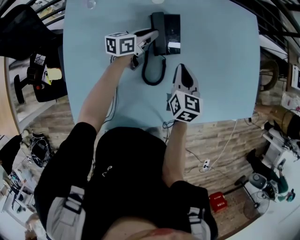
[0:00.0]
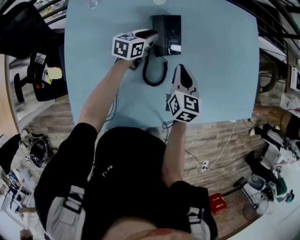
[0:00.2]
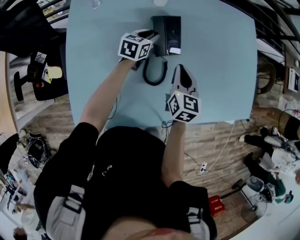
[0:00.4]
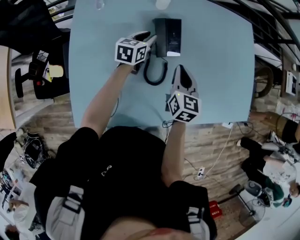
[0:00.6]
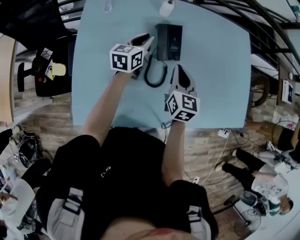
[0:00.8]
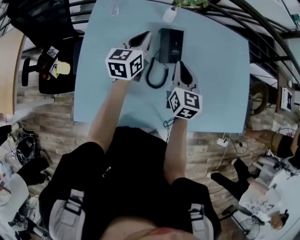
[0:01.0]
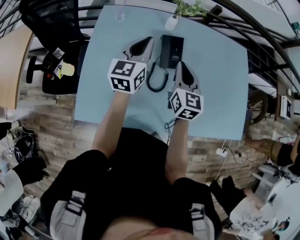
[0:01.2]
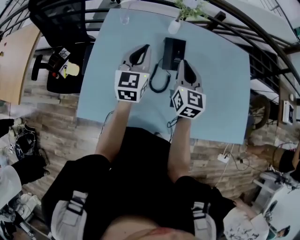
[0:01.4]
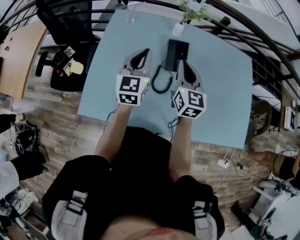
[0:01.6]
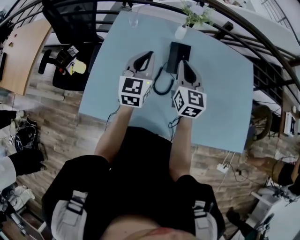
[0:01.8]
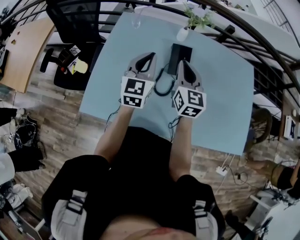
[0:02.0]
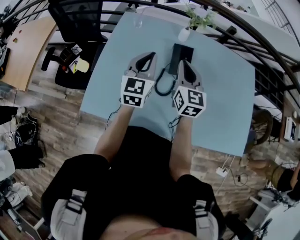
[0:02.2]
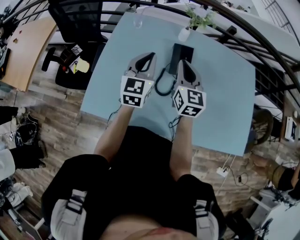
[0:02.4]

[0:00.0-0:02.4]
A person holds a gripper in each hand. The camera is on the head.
0.0 to 1.2 s: The right gripper heads upward, covering roughly 15 cm, and changes its angle by roughly 20 degrees. Meanwhile the left gripper moves upward and backward, roughly 30 cm, and rotates roughly 50 degrees.
1.2 to 2.4 s: The left gripper shifts about 5 cm backward.

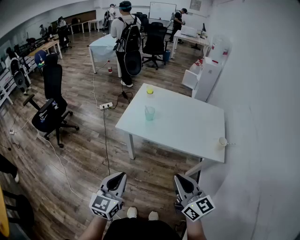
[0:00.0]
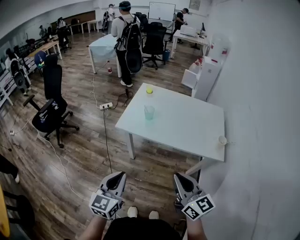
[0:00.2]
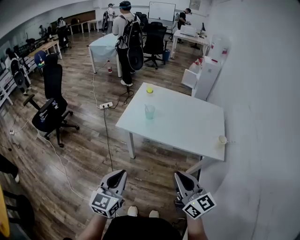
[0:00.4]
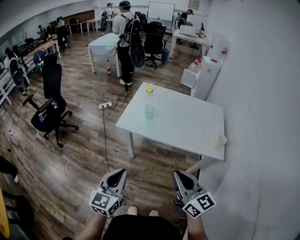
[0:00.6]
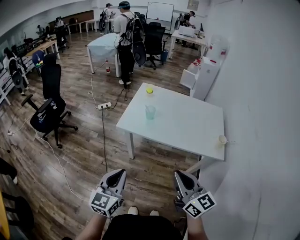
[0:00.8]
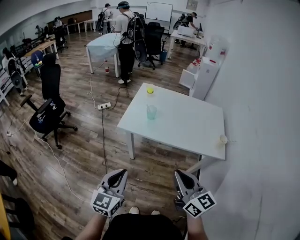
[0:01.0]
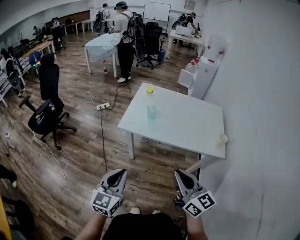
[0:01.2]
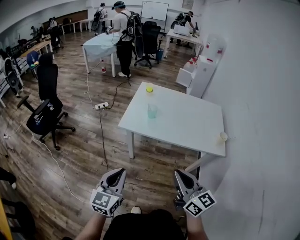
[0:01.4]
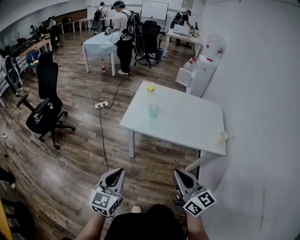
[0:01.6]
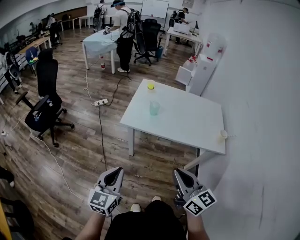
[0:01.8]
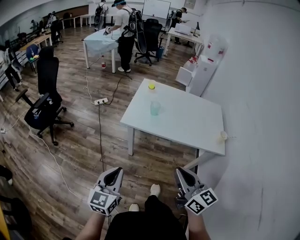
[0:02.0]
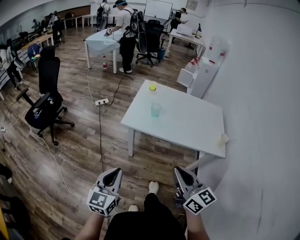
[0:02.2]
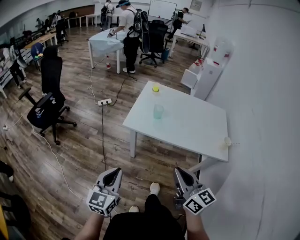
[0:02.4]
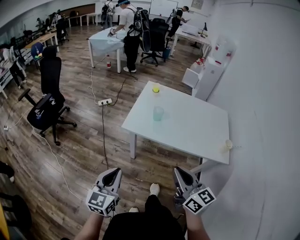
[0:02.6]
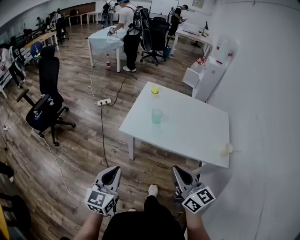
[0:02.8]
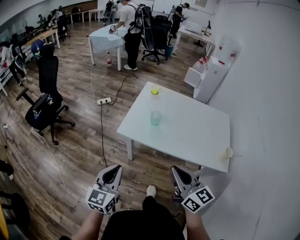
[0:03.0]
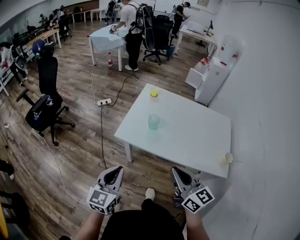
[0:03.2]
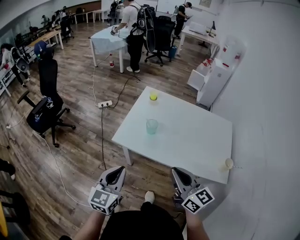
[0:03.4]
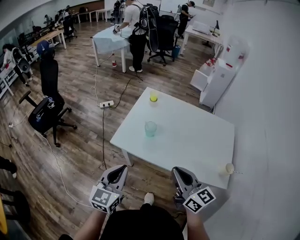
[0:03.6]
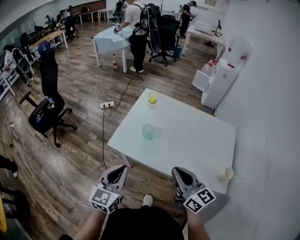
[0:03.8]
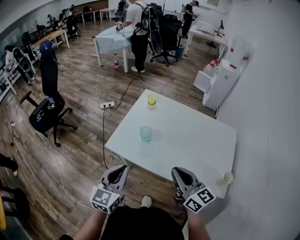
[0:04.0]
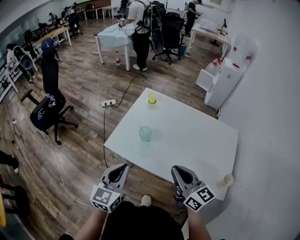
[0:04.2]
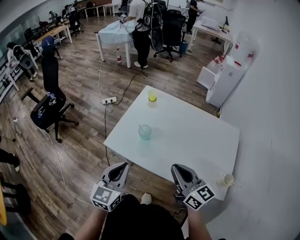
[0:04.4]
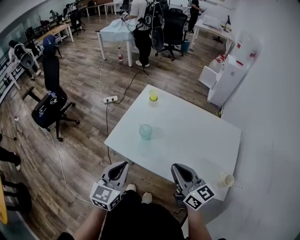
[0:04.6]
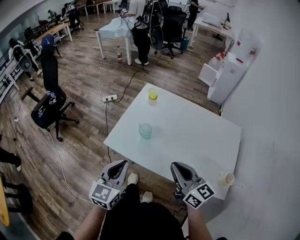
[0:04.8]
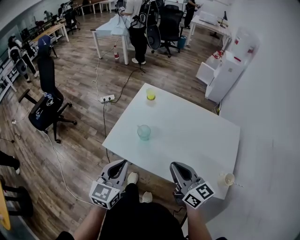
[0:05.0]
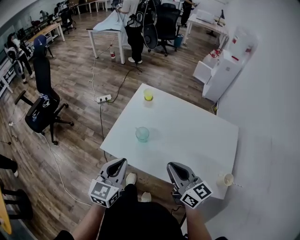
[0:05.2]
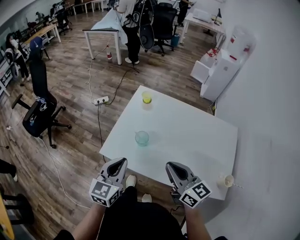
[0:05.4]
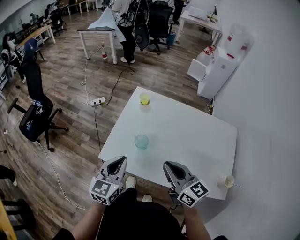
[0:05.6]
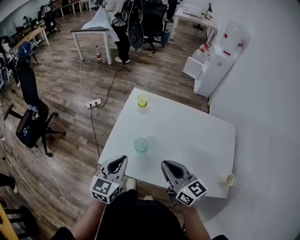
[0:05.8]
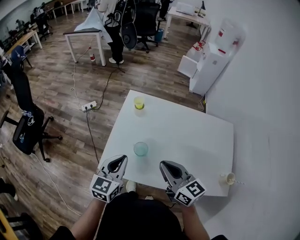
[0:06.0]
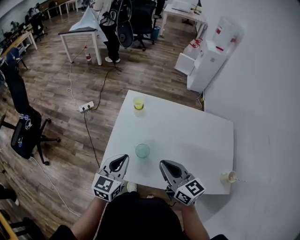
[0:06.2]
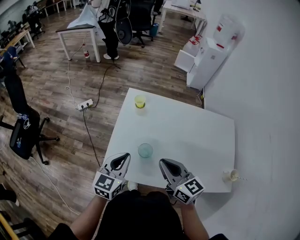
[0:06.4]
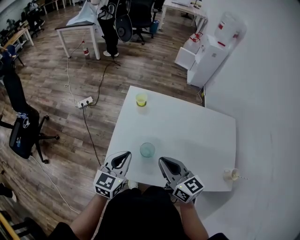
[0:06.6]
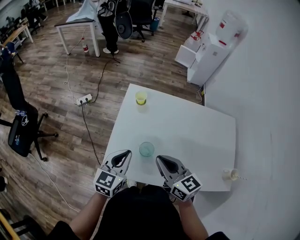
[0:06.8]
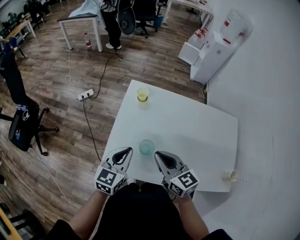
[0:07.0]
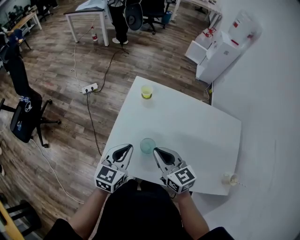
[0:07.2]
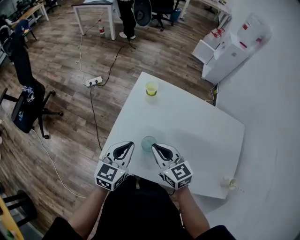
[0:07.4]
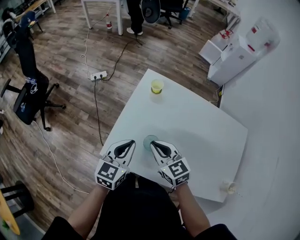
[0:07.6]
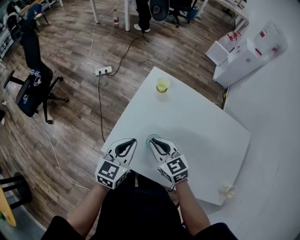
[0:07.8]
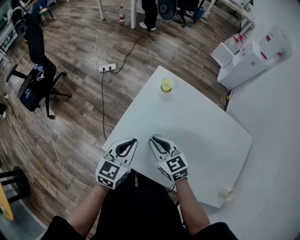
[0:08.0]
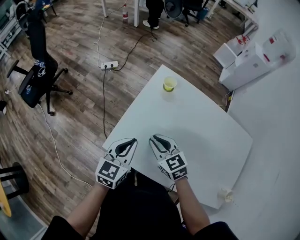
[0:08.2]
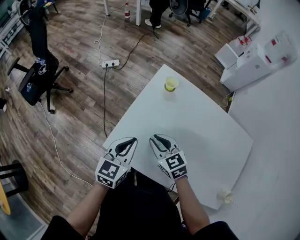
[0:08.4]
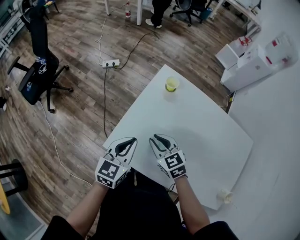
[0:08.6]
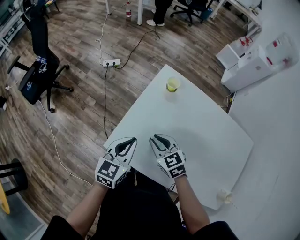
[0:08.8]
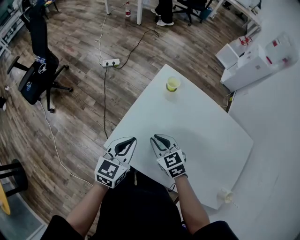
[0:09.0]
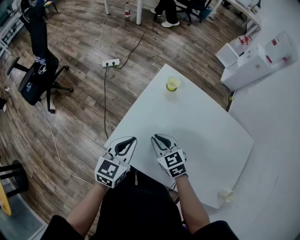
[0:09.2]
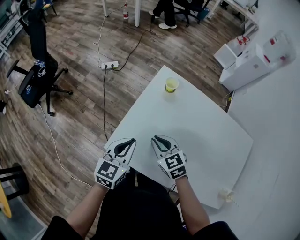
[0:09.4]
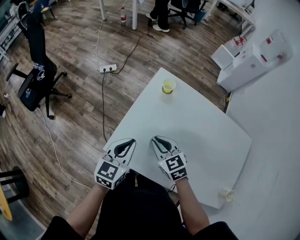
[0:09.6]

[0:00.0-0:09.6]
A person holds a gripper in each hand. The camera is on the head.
0.0 to 1.6 s: Both grippers travel together to the left, about 10 cm.
1.6 to 3.2 s: Both grippers travel together forward, some 15 cm.
3.2 to 4.8 s: The right gripper goes about 15 cm forward and to the right. The left gripper goes approximately 15 cm to the right and forward.
4.8 to 6.4 s: The right gripper is displaced forward and to the left by about 15 cm. Meanwhile the left gripper shifts roughly 20 cm forward.
6.4 to 8.0 s: The right gripper travels downward, forward and to the left by approximately 15 cm, and turns by some 30 degrees.
8.0 to 9.6 s: The grippers move only a little.

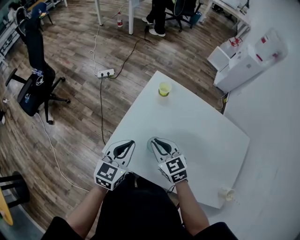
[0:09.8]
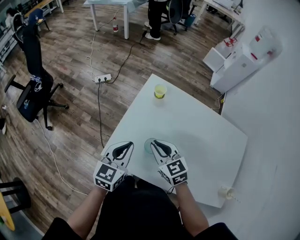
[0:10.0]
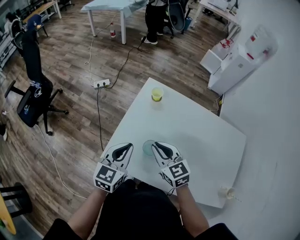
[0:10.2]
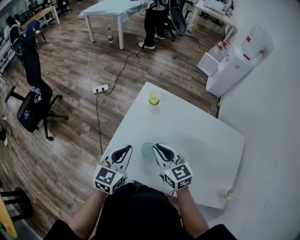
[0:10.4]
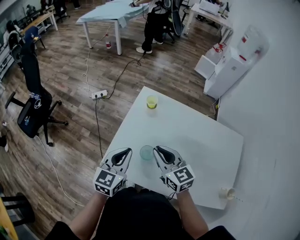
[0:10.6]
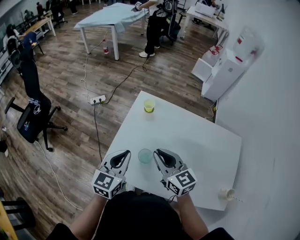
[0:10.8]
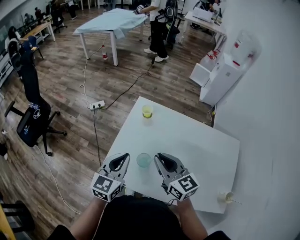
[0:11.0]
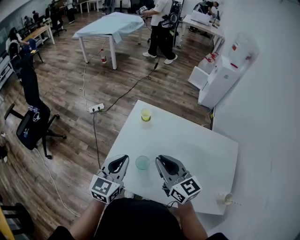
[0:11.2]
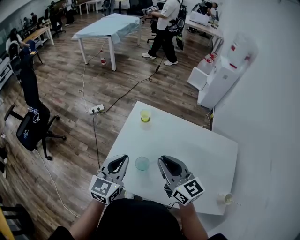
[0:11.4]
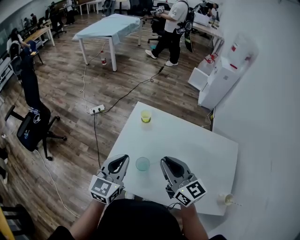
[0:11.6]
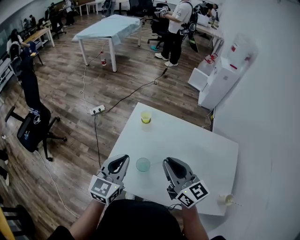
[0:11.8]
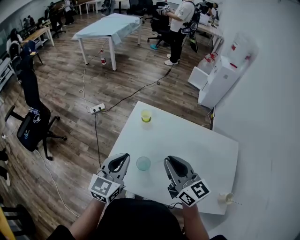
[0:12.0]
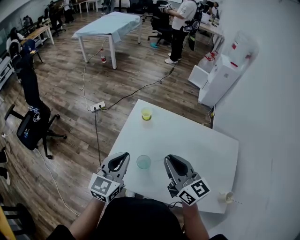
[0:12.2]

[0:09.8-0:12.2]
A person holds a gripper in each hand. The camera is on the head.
9.8 to 11.0 s: The left gripper moves upward, roughly 5 cm; the right gripper goes about 15 cm upward and to the right, and swivels approximately 30 degrees.
11.0 to 12.2 s: The right gripper heads upward, covering approximately 5 cm.

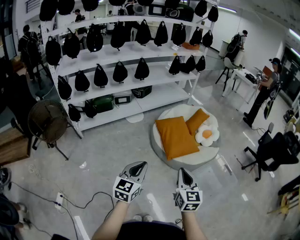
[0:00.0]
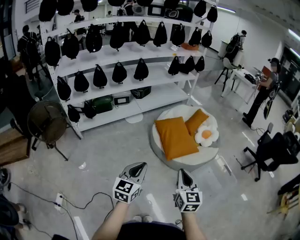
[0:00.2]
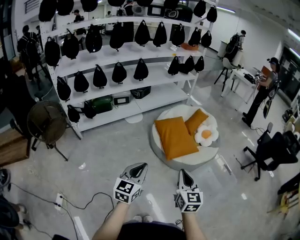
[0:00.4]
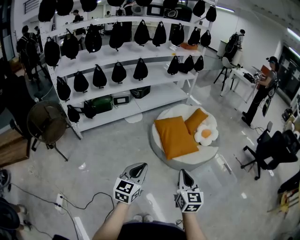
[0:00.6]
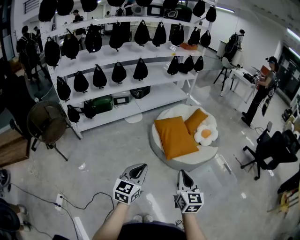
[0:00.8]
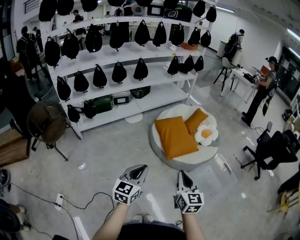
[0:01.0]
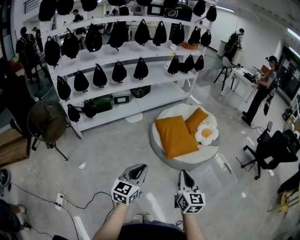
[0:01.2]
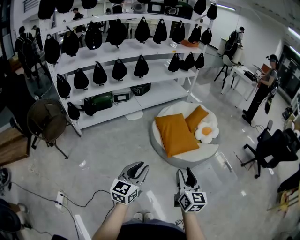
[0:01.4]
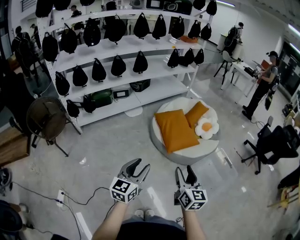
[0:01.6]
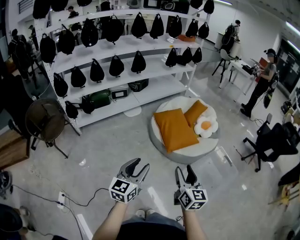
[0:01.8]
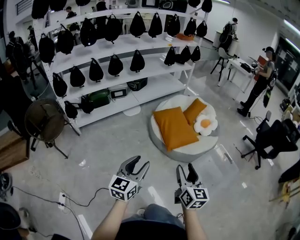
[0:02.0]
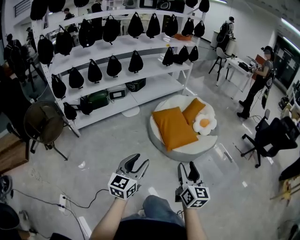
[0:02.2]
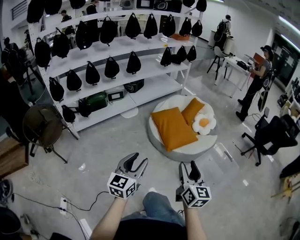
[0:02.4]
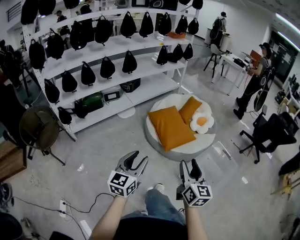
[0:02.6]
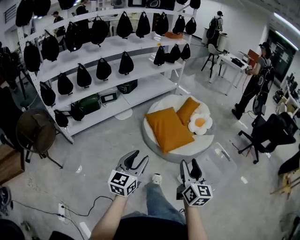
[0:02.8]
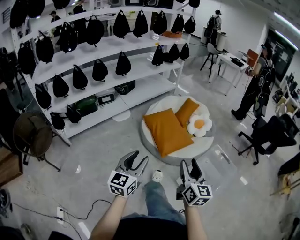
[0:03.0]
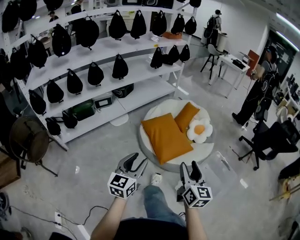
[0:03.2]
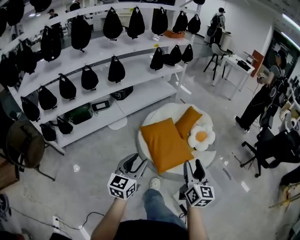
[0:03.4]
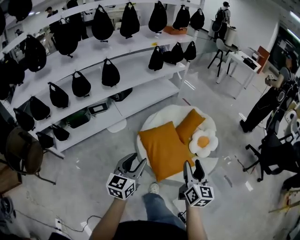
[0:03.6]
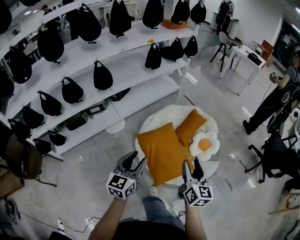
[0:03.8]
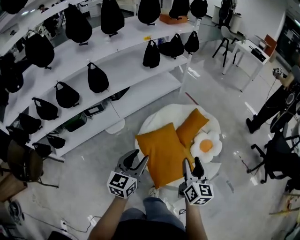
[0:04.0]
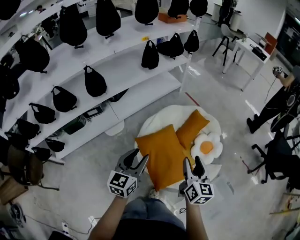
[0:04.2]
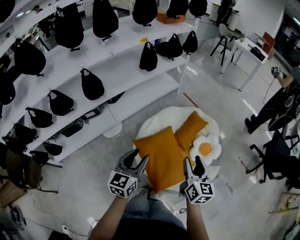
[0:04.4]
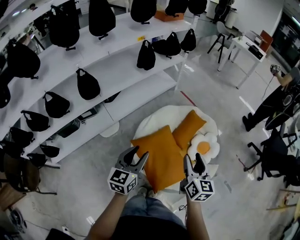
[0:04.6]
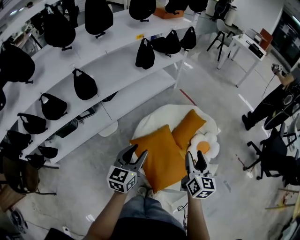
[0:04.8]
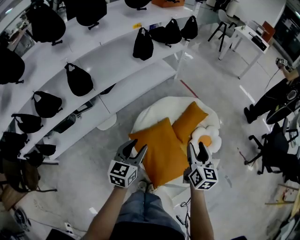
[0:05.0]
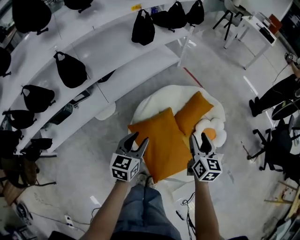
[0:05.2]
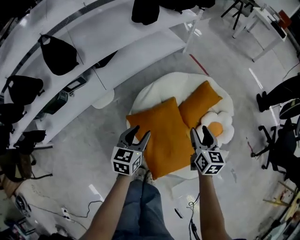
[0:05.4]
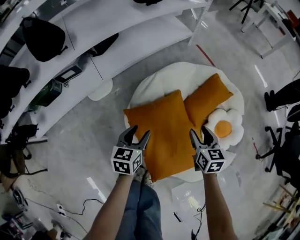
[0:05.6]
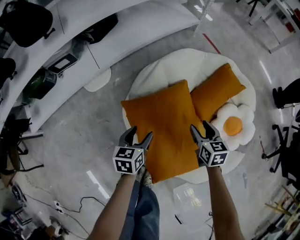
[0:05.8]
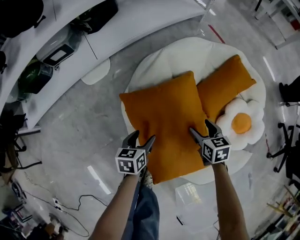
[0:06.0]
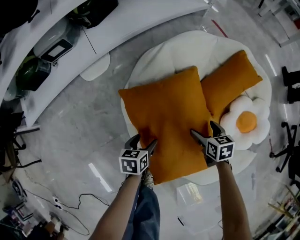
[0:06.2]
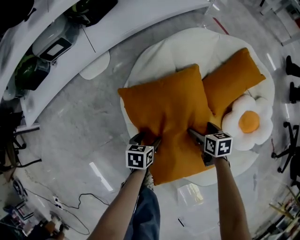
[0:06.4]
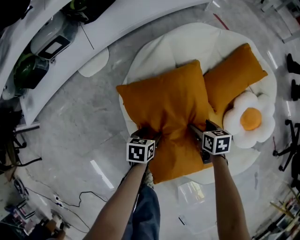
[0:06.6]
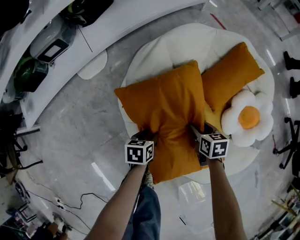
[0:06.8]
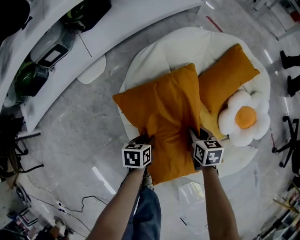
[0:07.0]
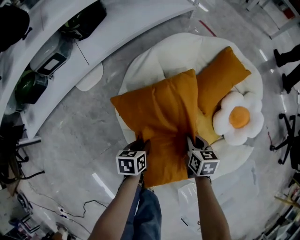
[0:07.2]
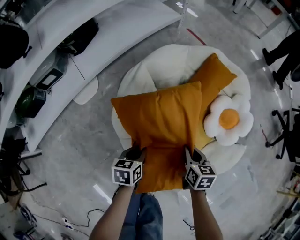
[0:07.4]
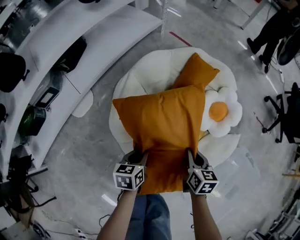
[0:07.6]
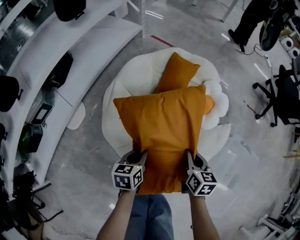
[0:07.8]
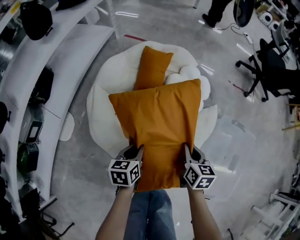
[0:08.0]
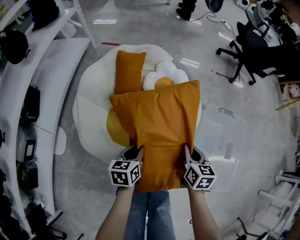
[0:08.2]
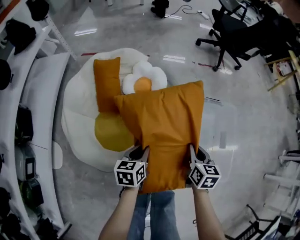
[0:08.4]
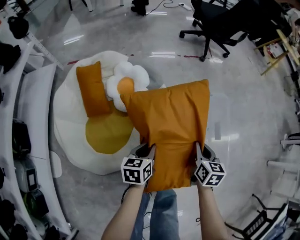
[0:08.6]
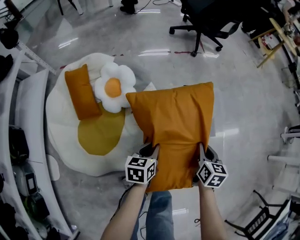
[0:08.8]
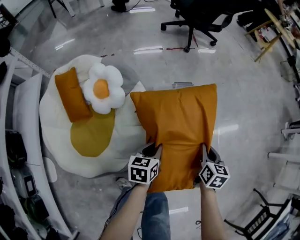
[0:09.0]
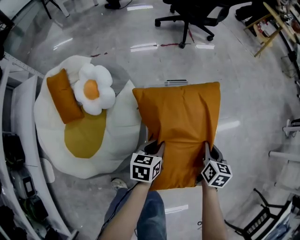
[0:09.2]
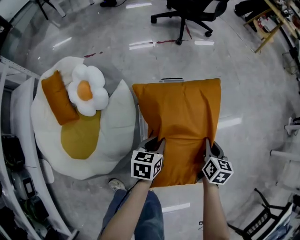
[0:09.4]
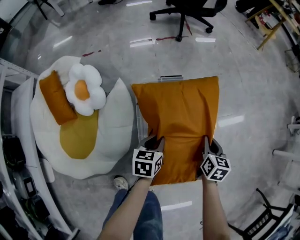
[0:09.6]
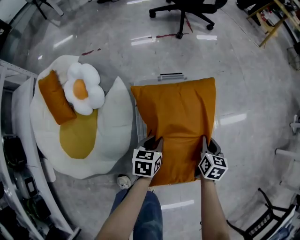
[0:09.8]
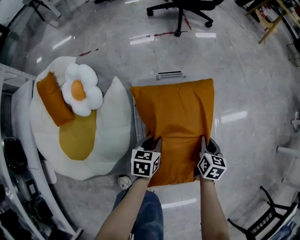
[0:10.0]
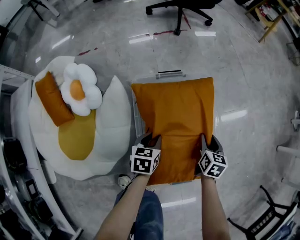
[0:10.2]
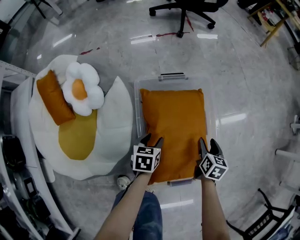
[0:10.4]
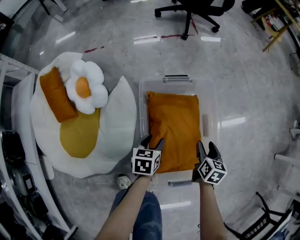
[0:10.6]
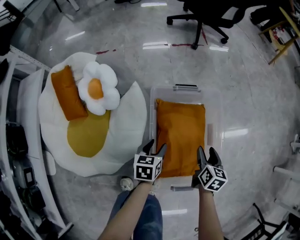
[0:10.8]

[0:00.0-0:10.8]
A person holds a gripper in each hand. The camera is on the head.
0.0 to 1.6 s: The right gripper opens. Meanwhile the left gripper opens.
1.6 to 3.0 s: The grippers both shift forward by roughly 10 cm.
3.0 to 4.6 s: Both grippers are carried forward, some 60 cm.
4.6 to 6.2 s: Both grippers travel together downward, roughly 60 cm. The right gripper tilts its fingers roughly 40 degrees downward, and opens up. The left gripper angles its fingers downward, by approximately 40 degrees, and opens its fingers.
6.2 to 7.8 s: The grippers both shift upward by about 20 cm. The right gripper swivels roughly 50 degrees, and closes up. Meanwhile the left gripper swivels approximately 30 degrees, and closes its fingers.
7.8 to 9.2 s: Both grippers are carried approximately 60 cm. The right gripper turns by approximately 50 degrees. Meanwhile the left gripper changes its angle by about 50 degrees.
9.2 to 10.8 s: Both grippers move downward, approximately 5 cm. The left gripper opens its fingers. Meanwhile the right gripper opens.
